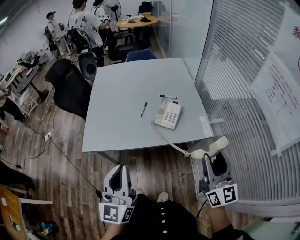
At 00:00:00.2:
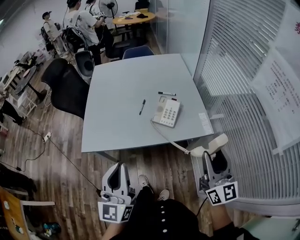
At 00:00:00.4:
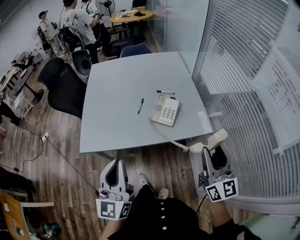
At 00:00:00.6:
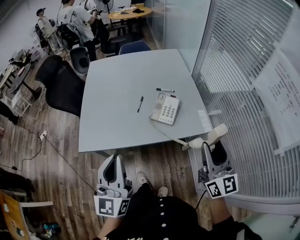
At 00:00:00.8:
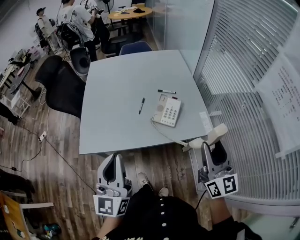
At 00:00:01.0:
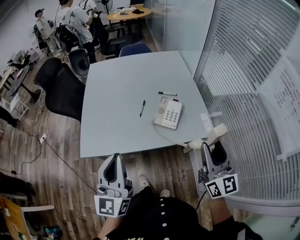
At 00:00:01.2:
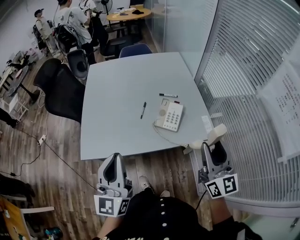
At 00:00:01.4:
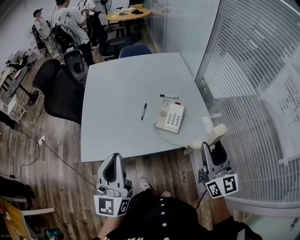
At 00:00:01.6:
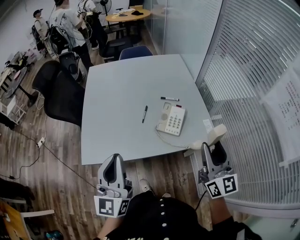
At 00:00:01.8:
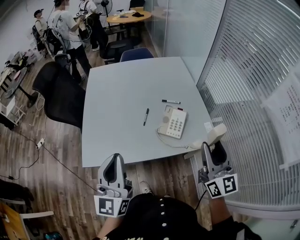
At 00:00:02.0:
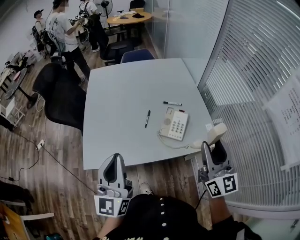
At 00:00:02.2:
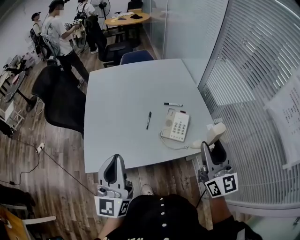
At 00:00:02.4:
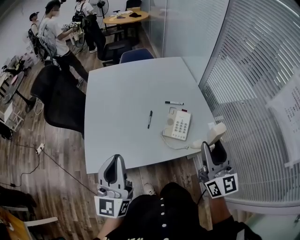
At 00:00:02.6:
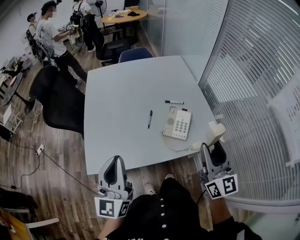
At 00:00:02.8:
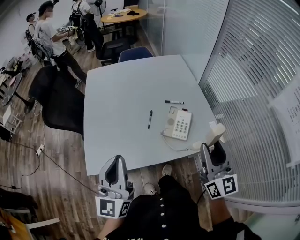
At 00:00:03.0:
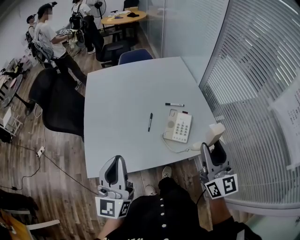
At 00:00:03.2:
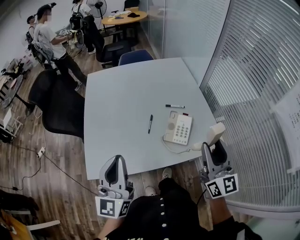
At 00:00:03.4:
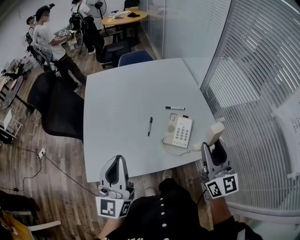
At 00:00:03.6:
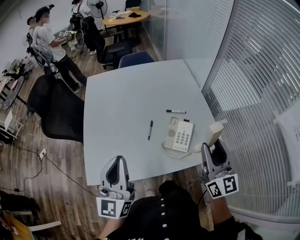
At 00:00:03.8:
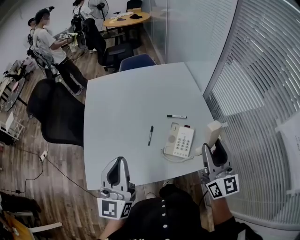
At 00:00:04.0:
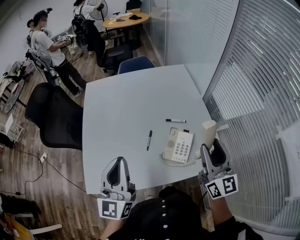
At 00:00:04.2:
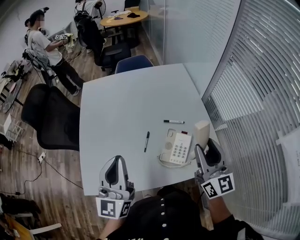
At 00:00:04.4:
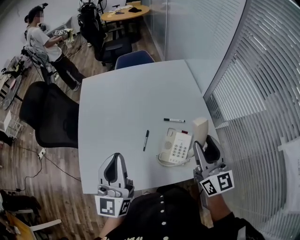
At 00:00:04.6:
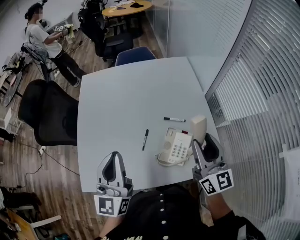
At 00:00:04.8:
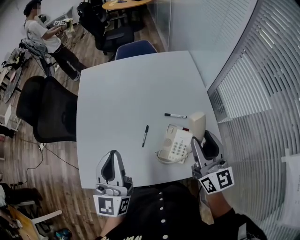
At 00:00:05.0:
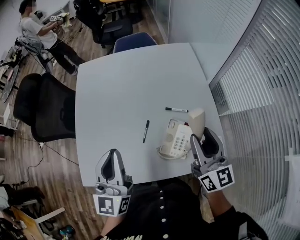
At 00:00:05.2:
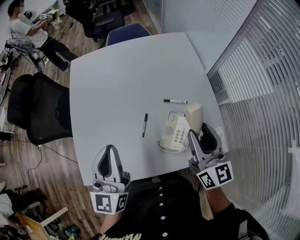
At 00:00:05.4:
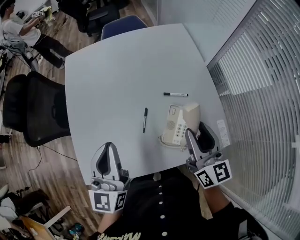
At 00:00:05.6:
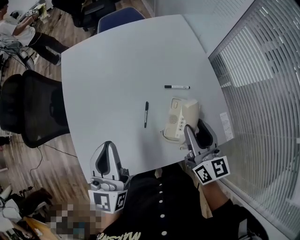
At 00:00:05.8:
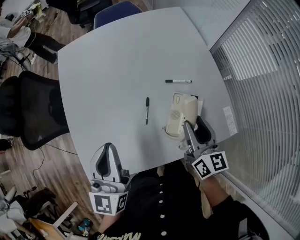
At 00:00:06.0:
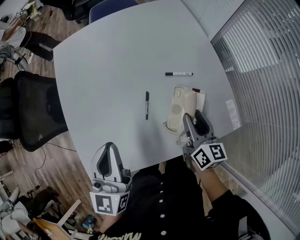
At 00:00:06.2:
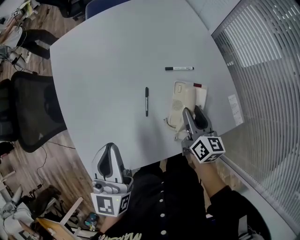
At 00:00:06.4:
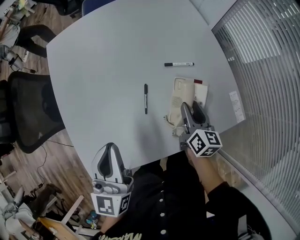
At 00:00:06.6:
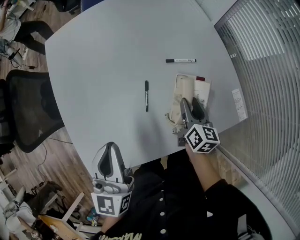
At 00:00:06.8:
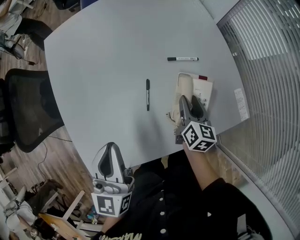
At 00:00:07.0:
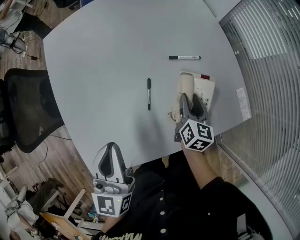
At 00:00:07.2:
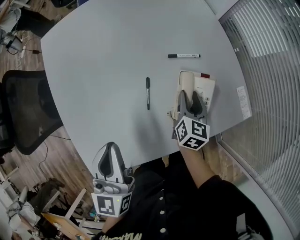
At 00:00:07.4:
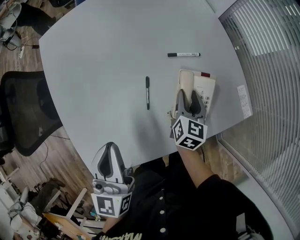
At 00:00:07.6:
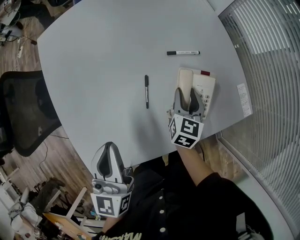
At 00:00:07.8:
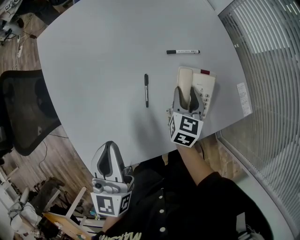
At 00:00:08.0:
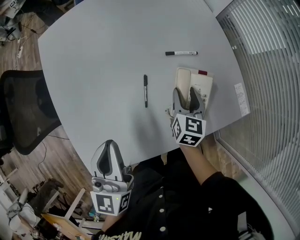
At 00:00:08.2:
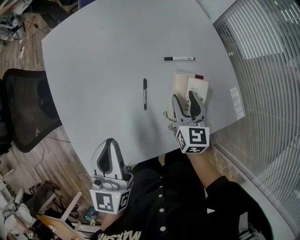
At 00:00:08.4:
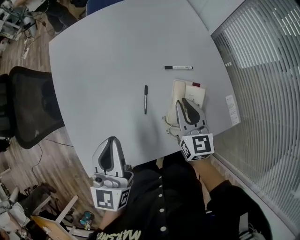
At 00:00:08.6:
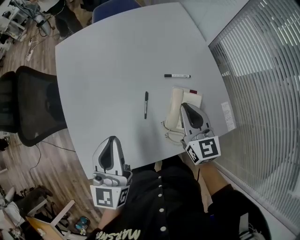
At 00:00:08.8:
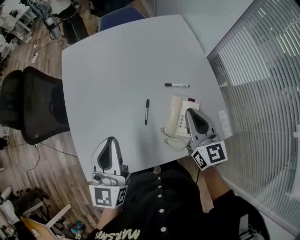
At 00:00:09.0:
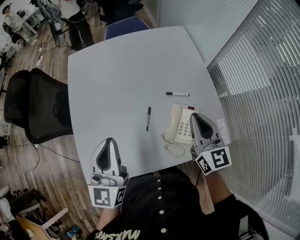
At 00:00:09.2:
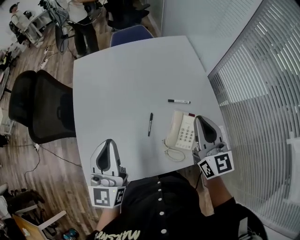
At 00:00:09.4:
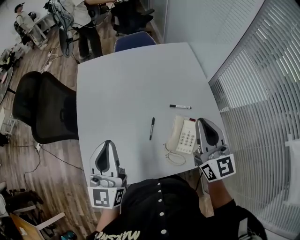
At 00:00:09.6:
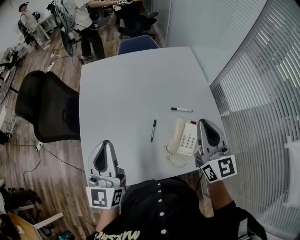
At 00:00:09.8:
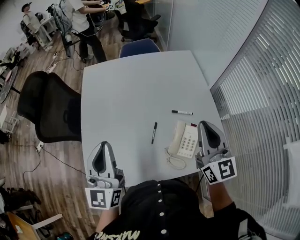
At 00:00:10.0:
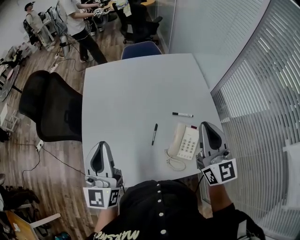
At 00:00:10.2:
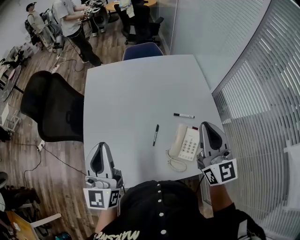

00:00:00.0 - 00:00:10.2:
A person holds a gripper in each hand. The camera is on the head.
00:00:00.0 - 00:00:01.4: Both grippers travel together forward and to the left, approximately 10 cm.
00:00:01.4 - 00:00:03.0: The two grippers go roughly 10 cm forward and to the left.
00:00:03.0 - 00:00:04.4: The two grippers go approximately 15 cm forward.
00:00:04.4 - 00:00:05.8: The right gripper is displaced downward by approximately 15 cm, and rotates about 30 degrees. The left gripper goes about 10 cm downward and forward.
00:00:05.8 - 00:00:07.2: The left gripper heads downward, covering about 5 cm, while the right gripper heads downward, covering some 15 cm, and rotates about 30 degrees.
00:00:07.2 - 00:00:08.8: The left gripper shifts about 5 cm upward, while the right gripper moves upward, about 20 cm, rotates some 40 degrees, and closes up.
00:00:08.8 - 00:00:10.2: The right gripper shifts approximately 15 cm upward, and swivels approximately 20 degrees; the left gripper shifts some 10 cm upward and to the left.

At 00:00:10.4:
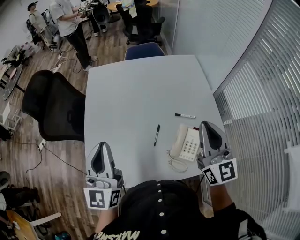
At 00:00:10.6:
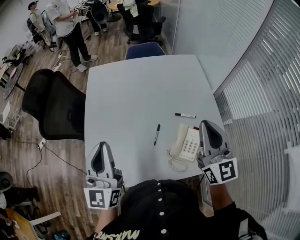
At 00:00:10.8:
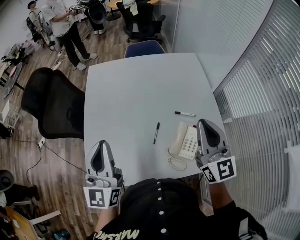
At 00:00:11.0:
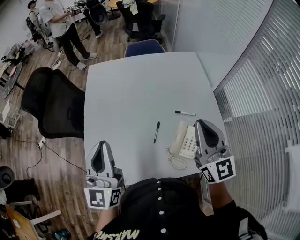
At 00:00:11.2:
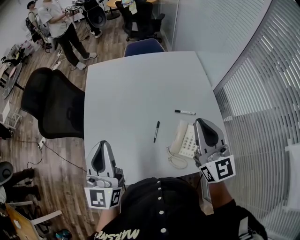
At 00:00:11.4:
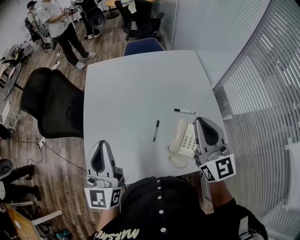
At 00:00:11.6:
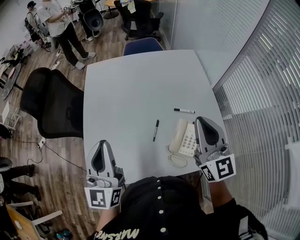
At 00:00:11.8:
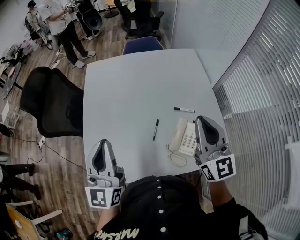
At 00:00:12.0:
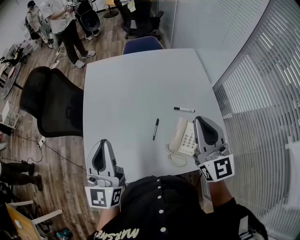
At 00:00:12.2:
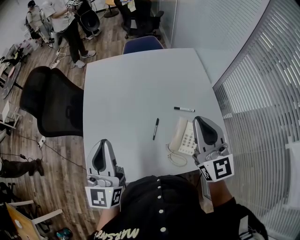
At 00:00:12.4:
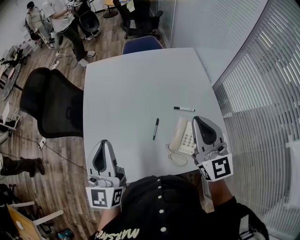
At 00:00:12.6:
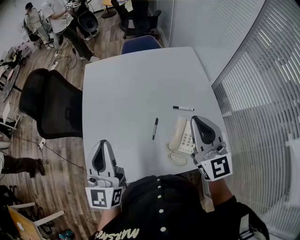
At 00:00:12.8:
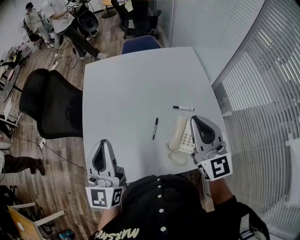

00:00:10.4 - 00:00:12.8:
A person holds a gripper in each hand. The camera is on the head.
00:00:10.4 - 00:00:12.8: There are only small adjustments of the grippers.

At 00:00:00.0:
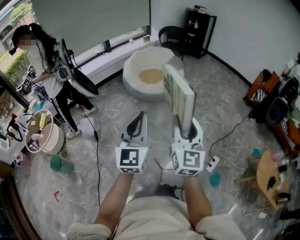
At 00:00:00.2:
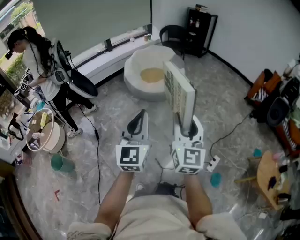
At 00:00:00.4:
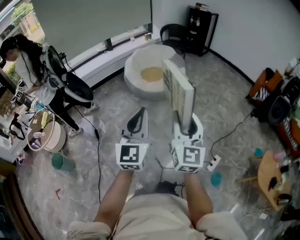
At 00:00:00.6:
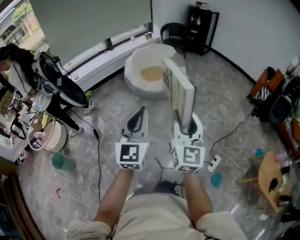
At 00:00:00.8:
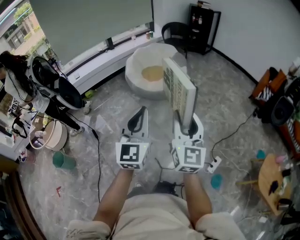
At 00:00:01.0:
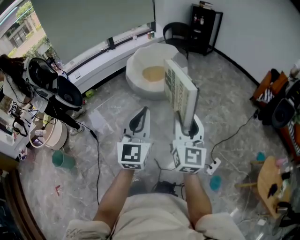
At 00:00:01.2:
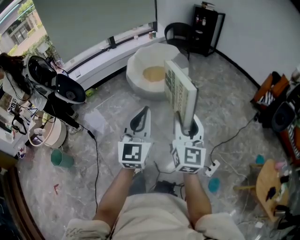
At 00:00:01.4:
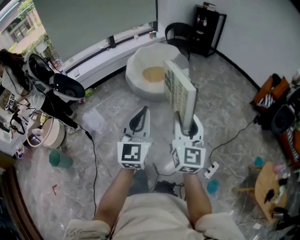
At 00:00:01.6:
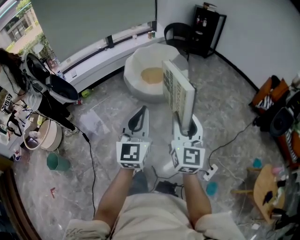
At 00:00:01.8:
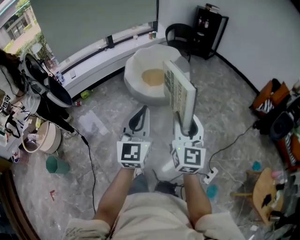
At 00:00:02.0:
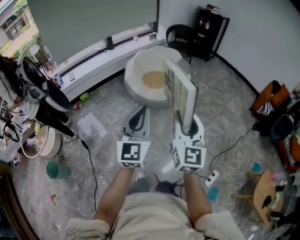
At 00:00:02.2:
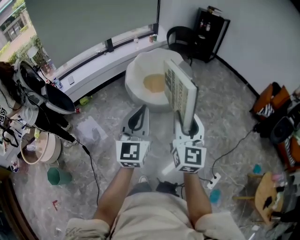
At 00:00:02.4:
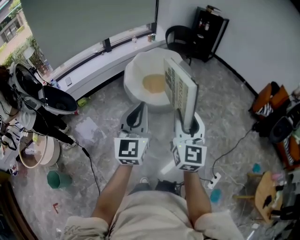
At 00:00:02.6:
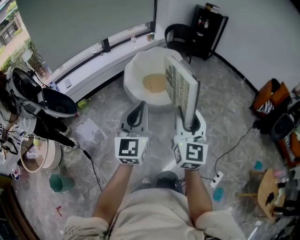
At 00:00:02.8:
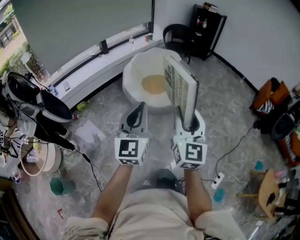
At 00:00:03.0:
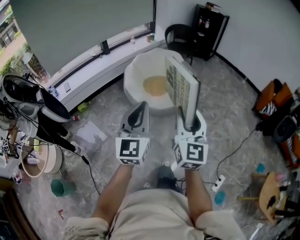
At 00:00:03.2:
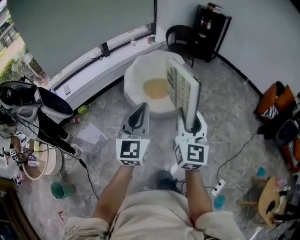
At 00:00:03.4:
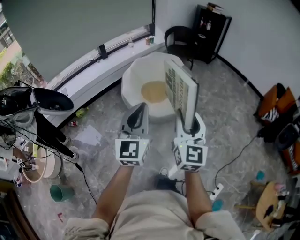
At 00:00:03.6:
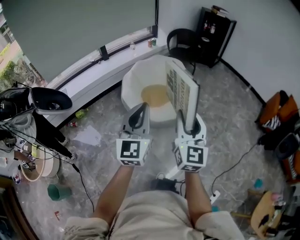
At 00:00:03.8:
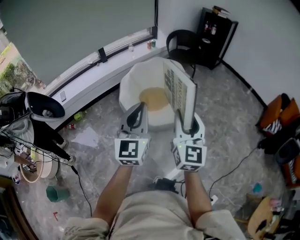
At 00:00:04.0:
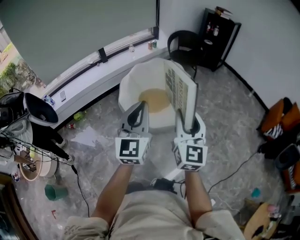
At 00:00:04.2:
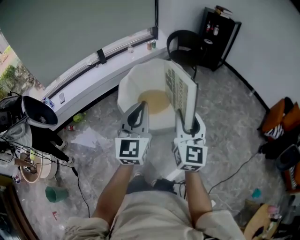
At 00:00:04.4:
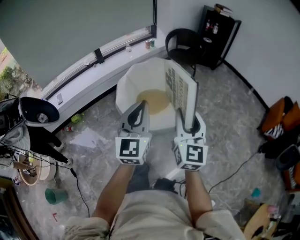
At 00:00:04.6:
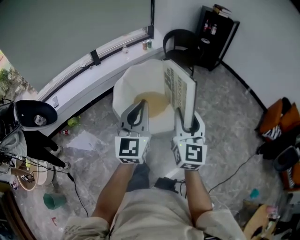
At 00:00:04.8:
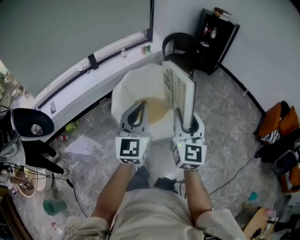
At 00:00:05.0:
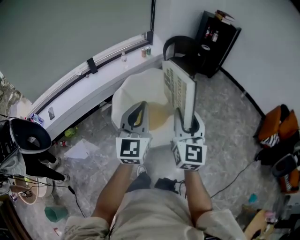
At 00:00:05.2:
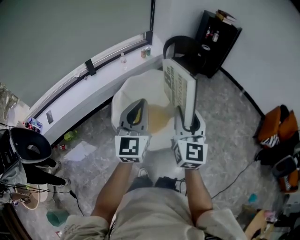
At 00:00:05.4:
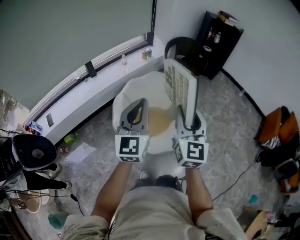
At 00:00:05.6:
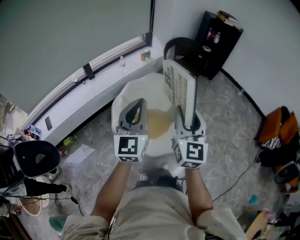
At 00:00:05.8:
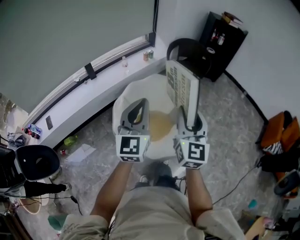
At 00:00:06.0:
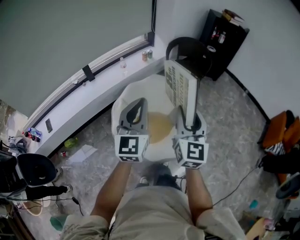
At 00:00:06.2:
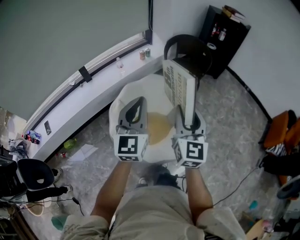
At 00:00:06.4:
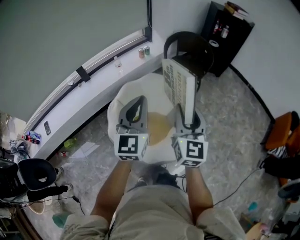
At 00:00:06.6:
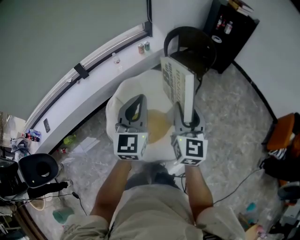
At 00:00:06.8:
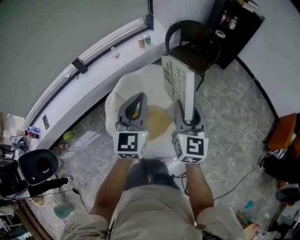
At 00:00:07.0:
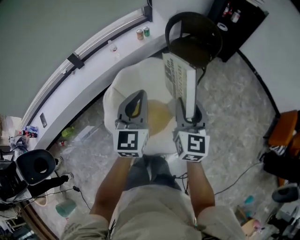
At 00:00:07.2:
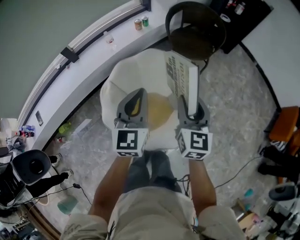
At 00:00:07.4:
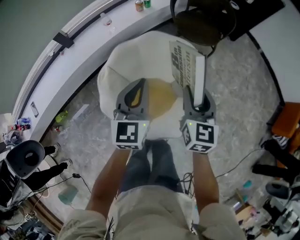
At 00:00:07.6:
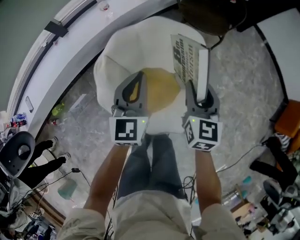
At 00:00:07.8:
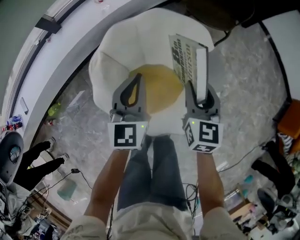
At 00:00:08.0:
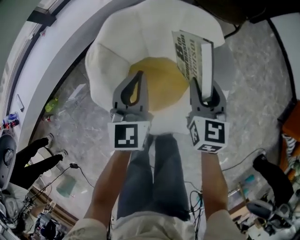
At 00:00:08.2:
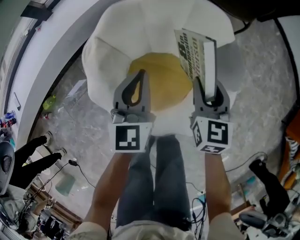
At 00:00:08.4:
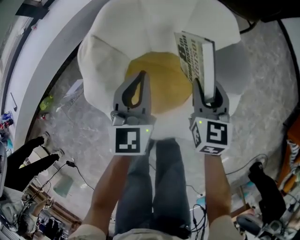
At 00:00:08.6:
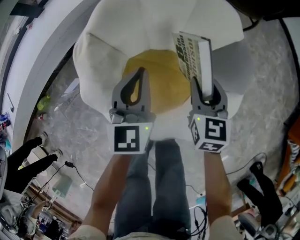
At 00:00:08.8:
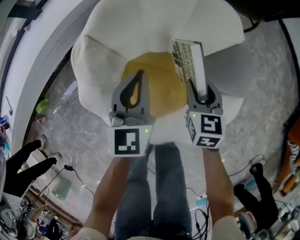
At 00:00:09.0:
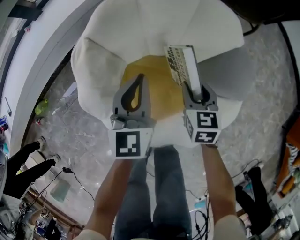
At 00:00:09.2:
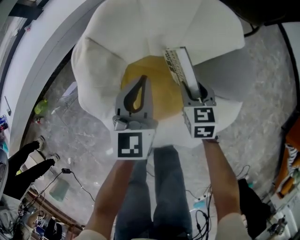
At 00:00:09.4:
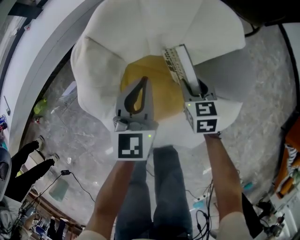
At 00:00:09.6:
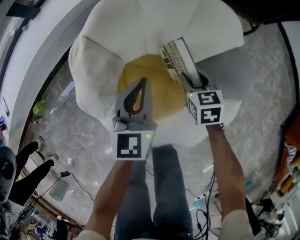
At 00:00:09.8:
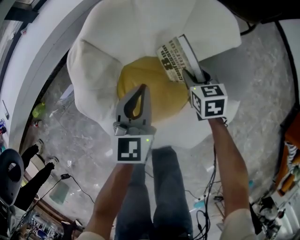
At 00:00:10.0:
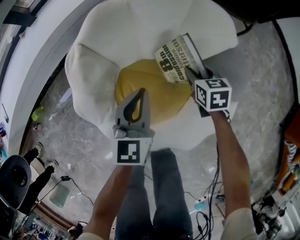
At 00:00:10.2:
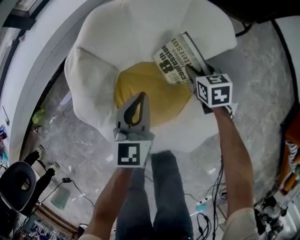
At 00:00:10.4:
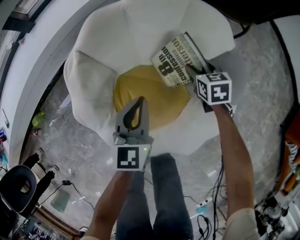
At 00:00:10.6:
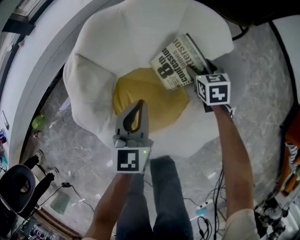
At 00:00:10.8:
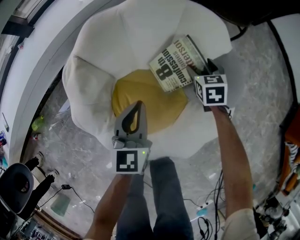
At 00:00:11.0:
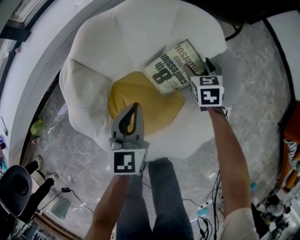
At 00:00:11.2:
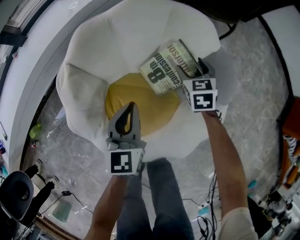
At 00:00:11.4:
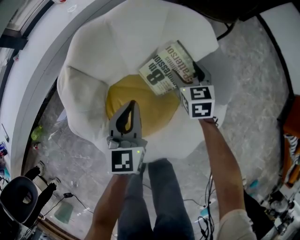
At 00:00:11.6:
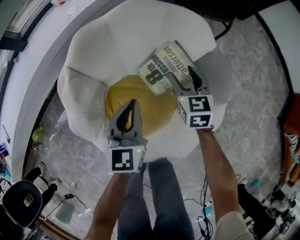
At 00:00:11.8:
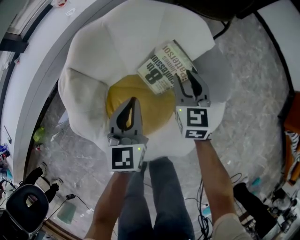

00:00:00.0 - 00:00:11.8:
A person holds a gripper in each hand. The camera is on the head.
00:00:00.0 - 00:00:01.4: The grippers both shift forward and to the right by about 10 cm.
00:00:01.4 - 00:00:03.0: The two grippers go approximately 30 cm forward and to the left.
00:00:03.0 - 00:00:04.4: The grippers both shift forward and to the right by some 30 cm.
00:00:04.4 - 00:00:06.0: The grippers both shift forward by some 35 cm.
00:00:06.0 - 00:00:07.4: Both grippers travel together forward and downward, some 30 cm. The right gripper changes its angle by some 20 degrees.
00:00:07.4 - 00:00:08.8: Both grippers travel together downward, roughly 35 cm. The right gripper changes its angle by some 20 degrees.
00:00:08.8 - 00:00:10.4: The right gripper shifts some 15 cm forward, downward and to the right. The left gripper shifts by about 5 cm.
00:00:10.4 - 00:00:11.8: The right gripper goes some 10 cm upward, and swivels some 30 degrees.
